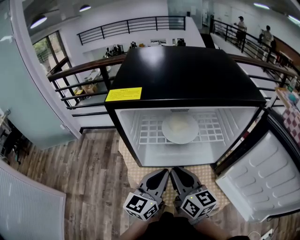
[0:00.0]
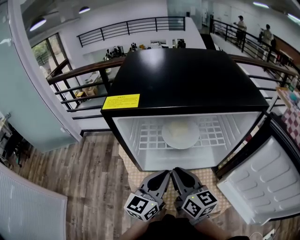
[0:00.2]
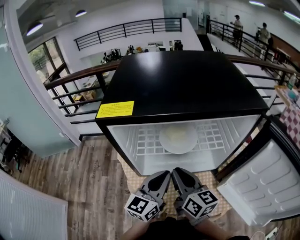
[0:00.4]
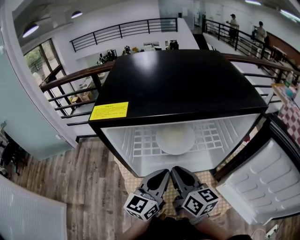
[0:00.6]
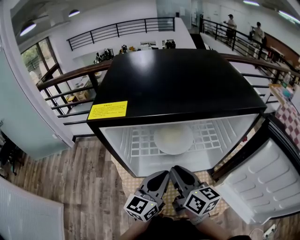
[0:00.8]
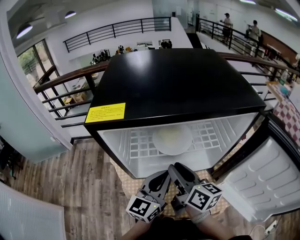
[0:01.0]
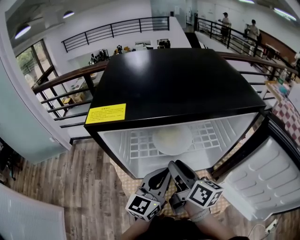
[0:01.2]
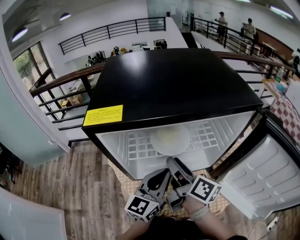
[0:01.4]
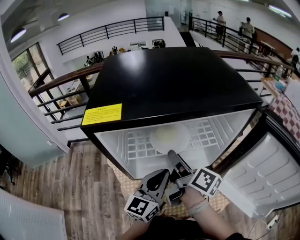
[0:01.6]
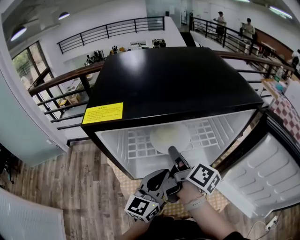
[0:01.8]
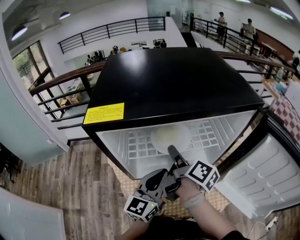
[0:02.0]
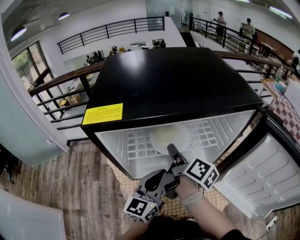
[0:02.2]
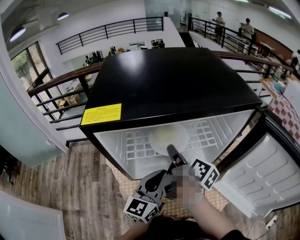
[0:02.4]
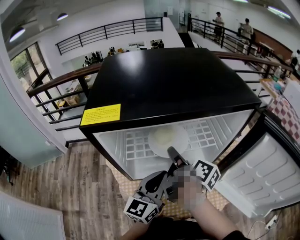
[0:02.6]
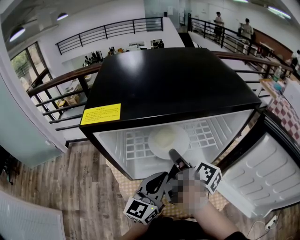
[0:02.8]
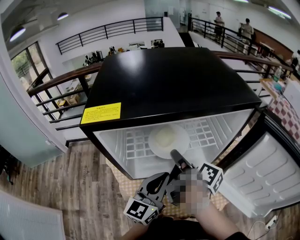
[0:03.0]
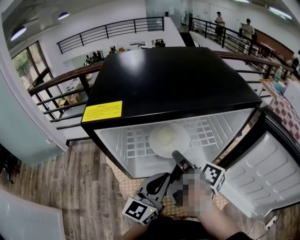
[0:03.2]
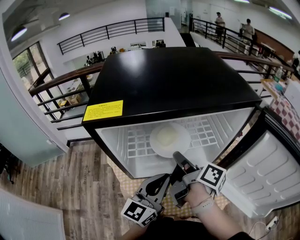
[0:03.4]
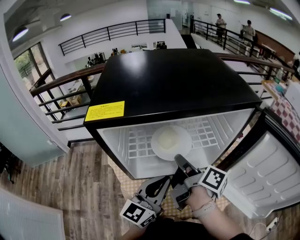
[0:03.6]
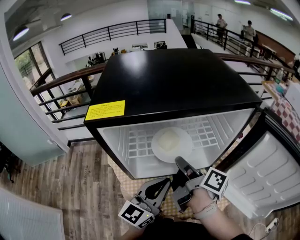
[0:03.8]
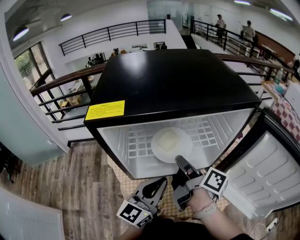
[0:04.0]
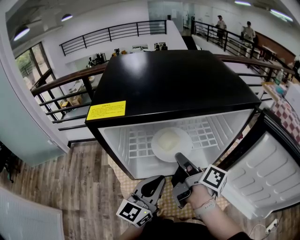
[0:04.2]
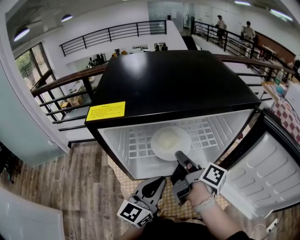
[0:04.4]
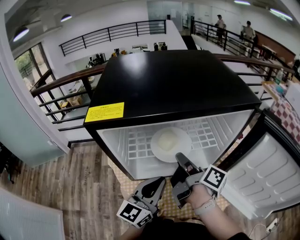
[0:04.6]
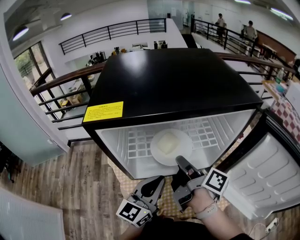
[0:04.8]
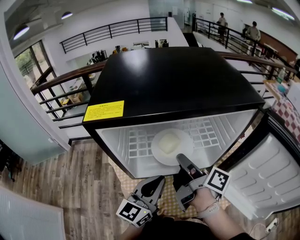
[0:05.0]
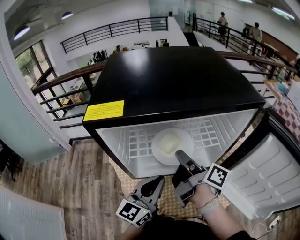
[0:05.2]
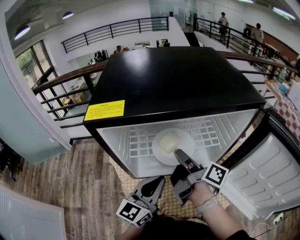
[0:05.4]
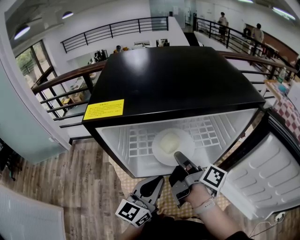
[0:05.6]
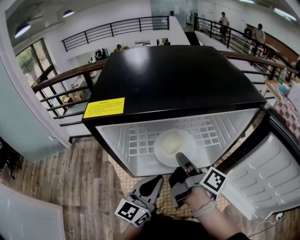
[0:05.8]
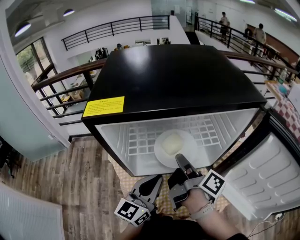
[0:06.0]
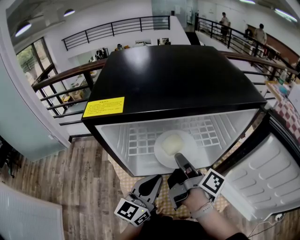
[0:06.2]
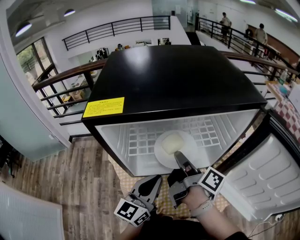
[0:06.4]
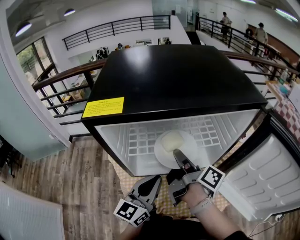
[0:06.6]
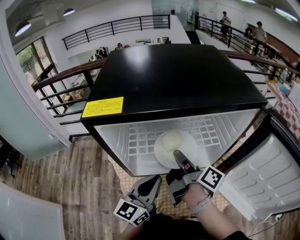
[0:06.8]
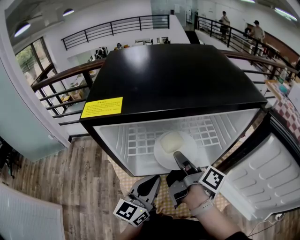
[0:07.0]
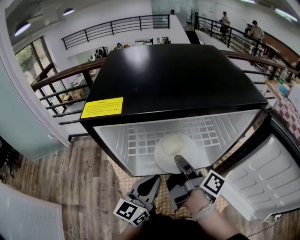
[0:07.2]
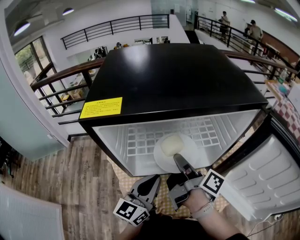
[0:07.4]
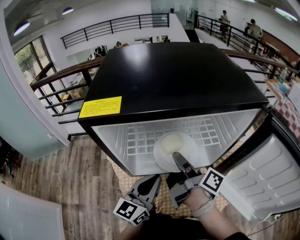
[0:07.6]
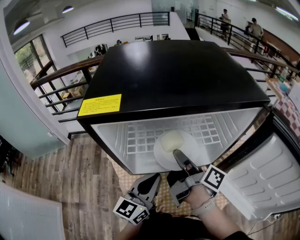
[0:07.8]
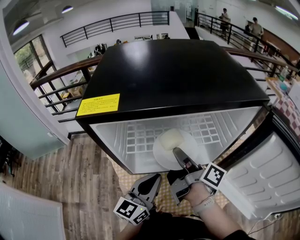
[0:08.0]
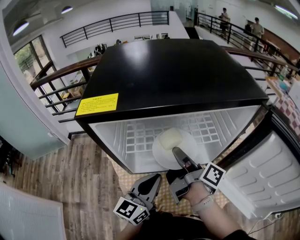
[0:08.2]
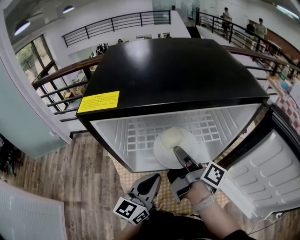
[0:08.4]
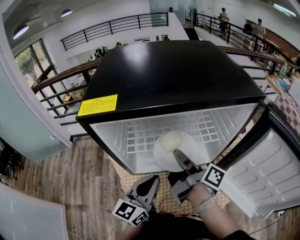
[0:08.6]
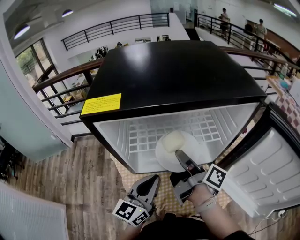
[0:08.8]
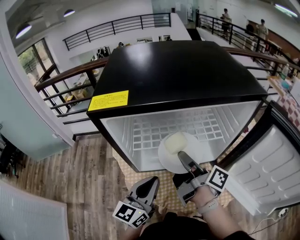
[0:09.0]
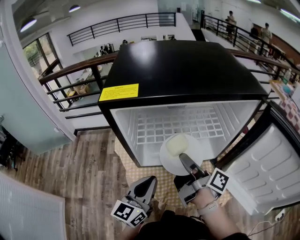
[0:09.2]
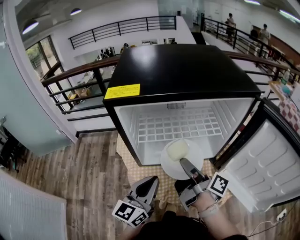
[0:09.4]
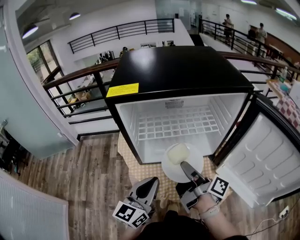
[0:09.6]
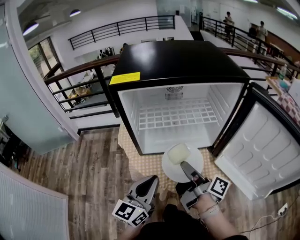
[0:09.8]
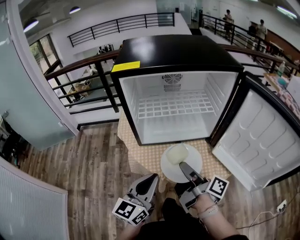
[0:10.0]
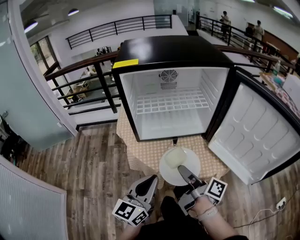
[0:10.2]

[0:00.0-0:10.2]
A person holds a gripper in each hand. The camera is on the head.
0:00.0 to 0:01.4: The right gripper shifts approximately 10 cm forward, turns by roughly 40 degrees, and opens its fingers. The left gripper is displaced forward by some 5 cm.
0:01.4 to 0:03.0: The grippers stay close to where they were, moving slightly.
0:03.0 to 0:08.8: The grippers stay close to where they were, moving slightly.
0:08.8 to 0:10.2: The grippers both shift backward by approximately 20 cm.

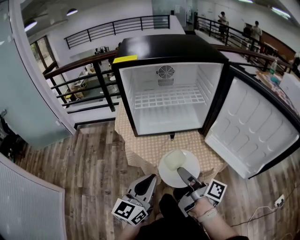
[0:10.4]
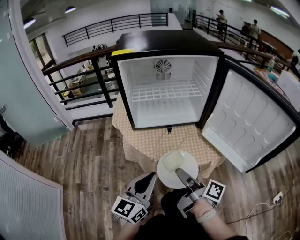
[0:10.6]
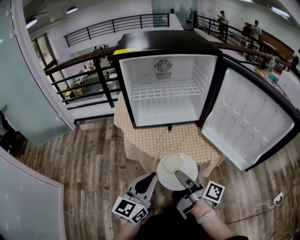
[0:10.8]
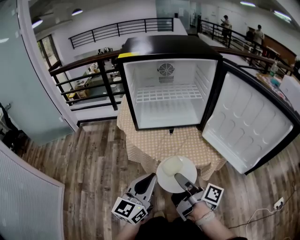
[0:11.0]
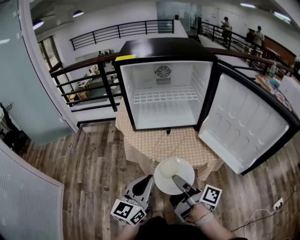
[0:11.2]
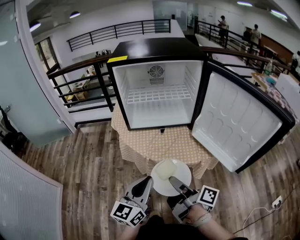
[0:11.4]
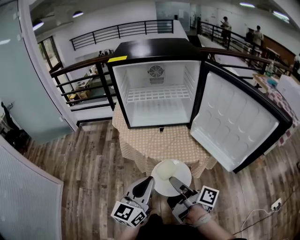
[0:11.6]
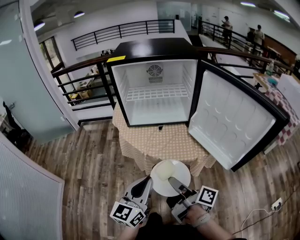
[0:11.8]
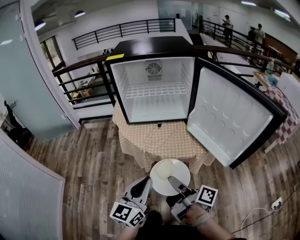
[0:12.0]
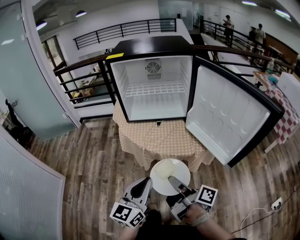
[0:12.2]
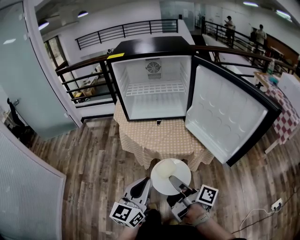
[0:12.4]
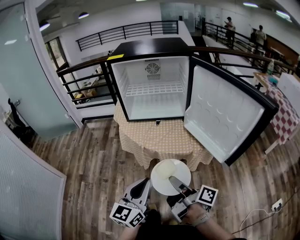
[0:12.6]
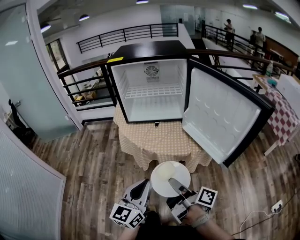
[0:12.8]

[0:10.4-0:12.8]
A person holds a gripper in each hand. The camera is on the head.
0:10.4 to 0:11.6: The left gripper heads backward and to the right, covering some 10 cm; the right gripper moves backward, some 10 cm.
0:11.6 to 0:12.8: The grippers both shift backward by approximately 10 cm.

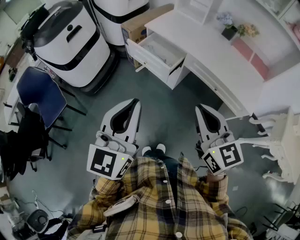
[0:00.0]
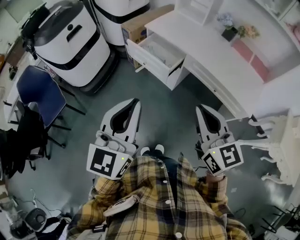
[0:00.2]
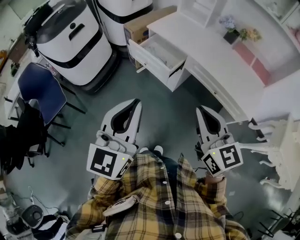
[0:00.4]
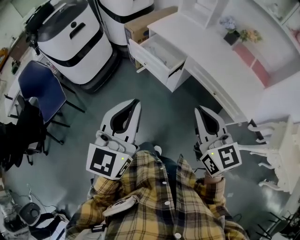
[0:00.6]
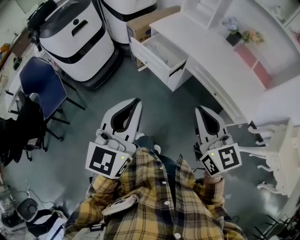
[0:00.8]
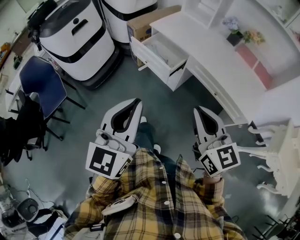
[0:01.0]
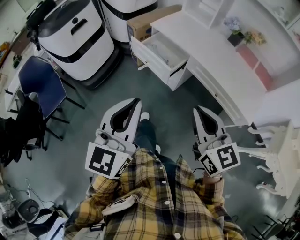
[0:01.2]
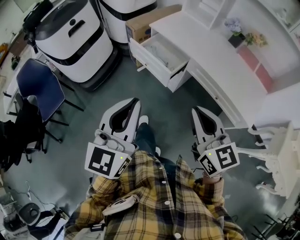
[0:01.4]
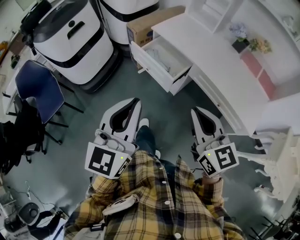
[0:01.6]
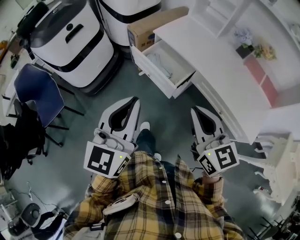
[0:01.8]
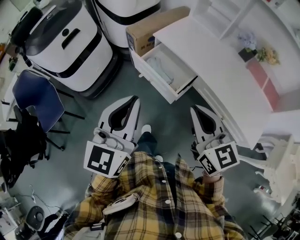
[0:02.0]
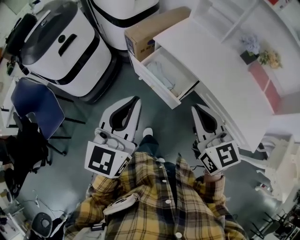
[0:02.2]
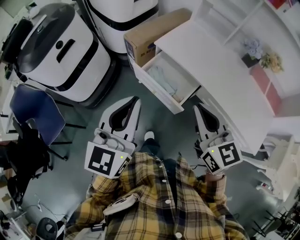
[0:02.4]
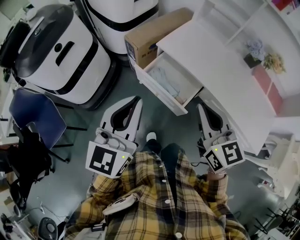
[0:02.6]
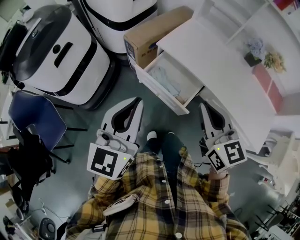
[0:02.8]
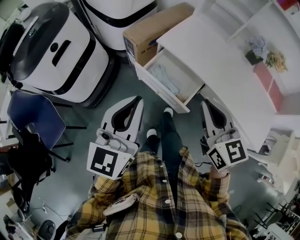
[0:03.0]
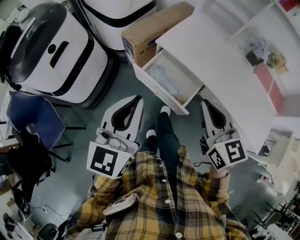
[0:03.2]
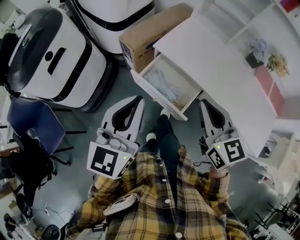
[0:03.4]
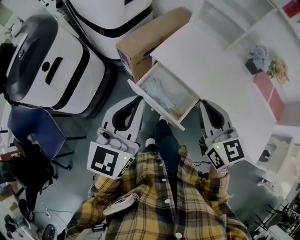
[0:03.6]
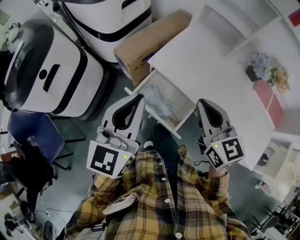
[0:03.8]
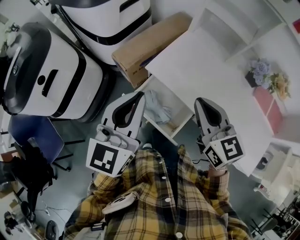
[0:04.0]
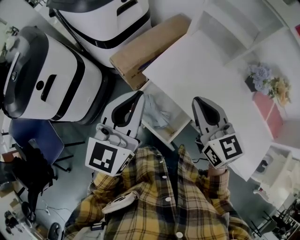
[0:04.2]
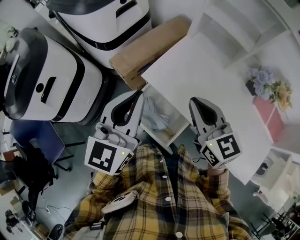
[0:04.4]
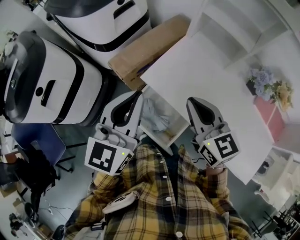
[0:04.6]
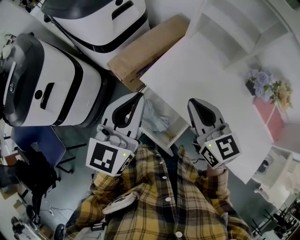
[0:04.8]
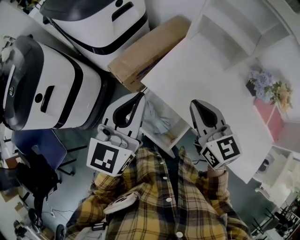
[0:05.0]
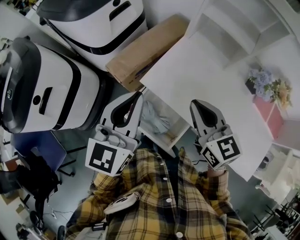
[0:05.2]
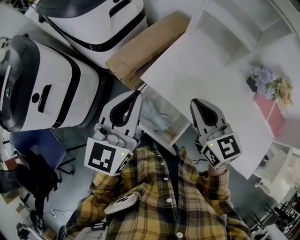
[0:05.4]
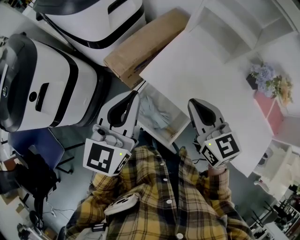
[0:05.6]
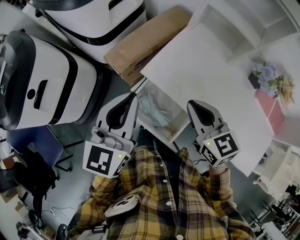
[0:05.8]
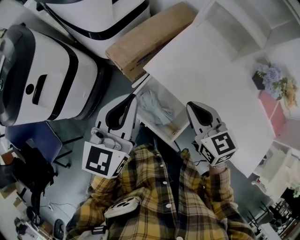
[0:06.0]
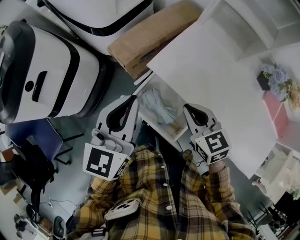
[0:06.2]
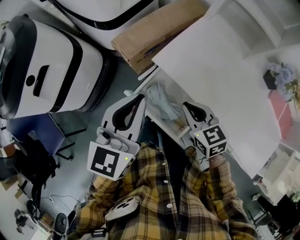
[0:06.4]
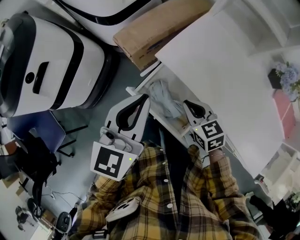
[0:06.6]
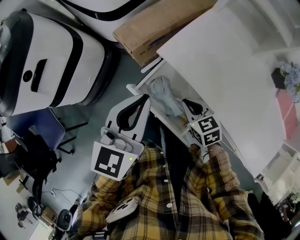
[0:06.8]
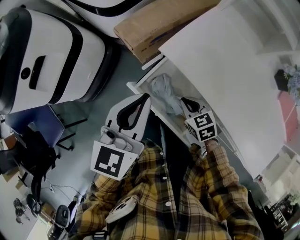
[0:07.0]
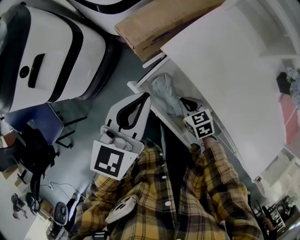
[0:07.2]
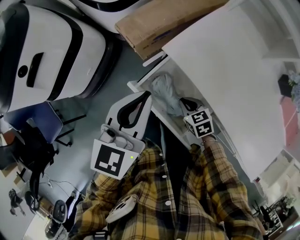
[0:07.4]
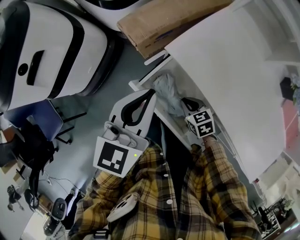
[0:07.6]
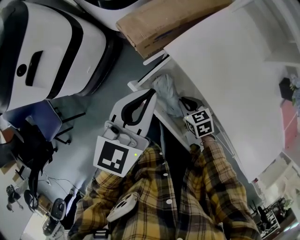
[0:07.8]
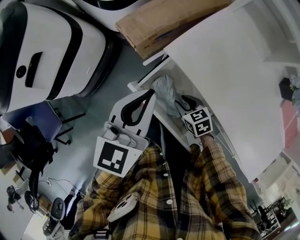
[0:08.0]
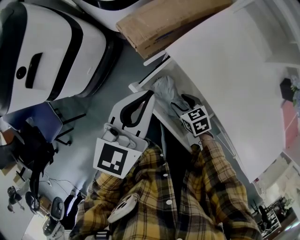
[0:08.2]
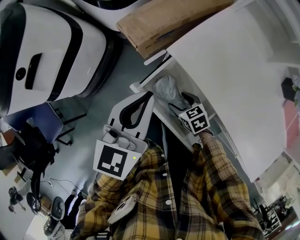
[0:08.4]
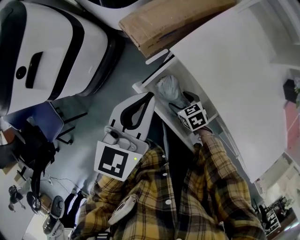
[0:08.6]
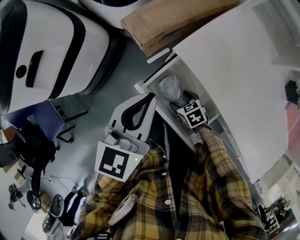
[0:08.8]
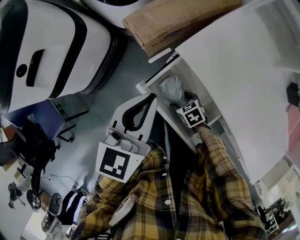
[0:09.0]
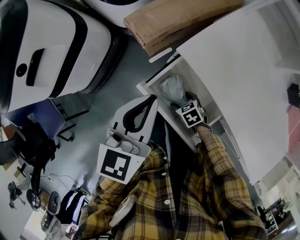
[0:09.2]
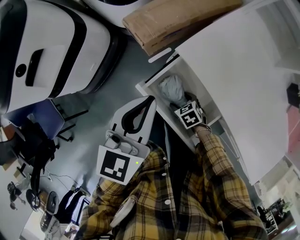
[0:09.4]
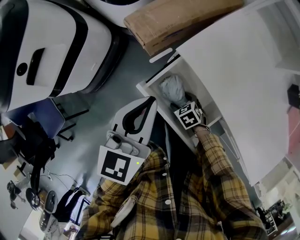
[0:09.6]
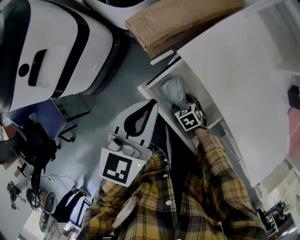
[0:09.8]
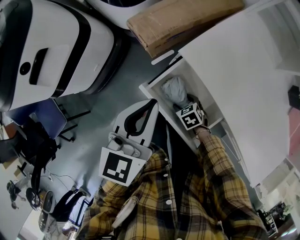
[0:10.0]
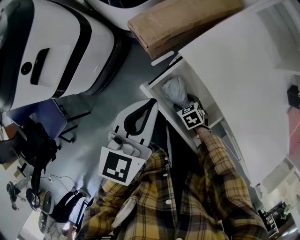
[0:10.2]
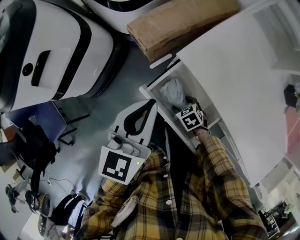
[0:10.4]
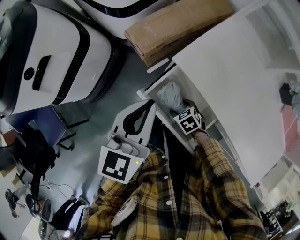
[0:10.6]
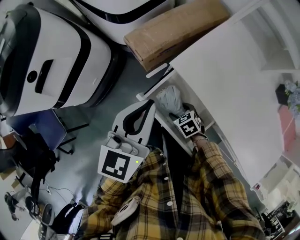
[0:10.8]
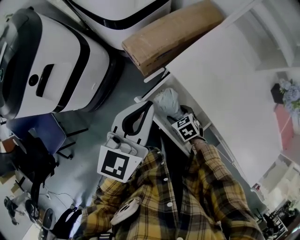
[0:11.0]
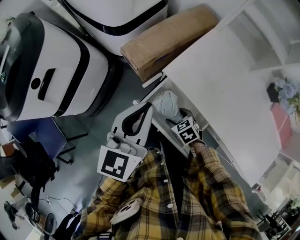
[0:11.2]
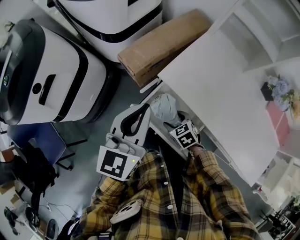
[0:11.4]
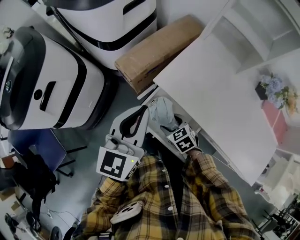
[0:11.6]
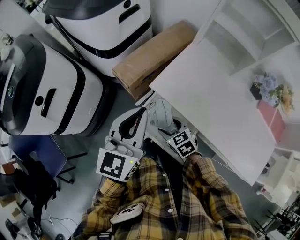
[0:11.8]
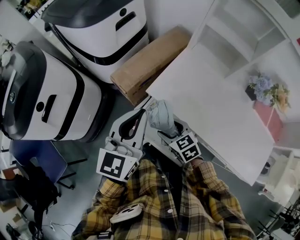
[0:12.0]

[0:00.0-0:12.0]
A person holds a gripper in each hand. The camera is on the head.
0:00.0 to 0:01.6: The grippers both shift forward by about 10 cm.
0:01.6 to 0:03.0: The two grippers go some 25 cm forward.
0:03.0 to 0:04.4: The grippers both shift forward by about 25 cm.
0:04.4 to 0:06.0: The two grippers go about 10 cm downward.
0:06.0 to 0:07.6: The right gripper is displaced downward by roughly 30 cm, and turns by about 30 degrees. The left gripper travels downward by approximately 10 cm.
0:07.6 to 0:09.0: The right gripper travels downward and to the left by some 10 cm, and opens.
0:09.0 to 0:10.4: The grippers move only a little.
0:10.4 to 0:12.0: The right gripper moves upward, roughly 25 cm, and swivels about 30 degrees. The left gripper goes about 10 cm upward and to the right.
